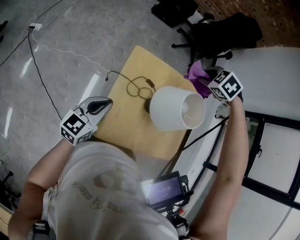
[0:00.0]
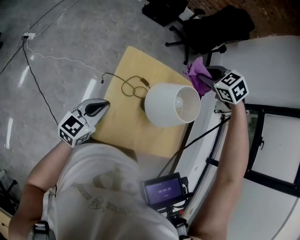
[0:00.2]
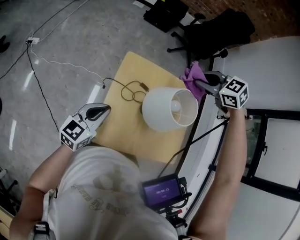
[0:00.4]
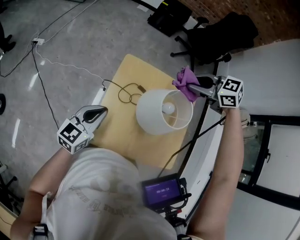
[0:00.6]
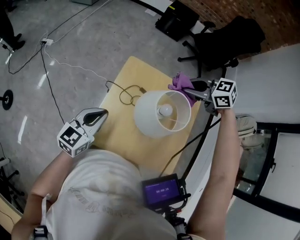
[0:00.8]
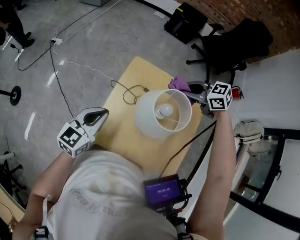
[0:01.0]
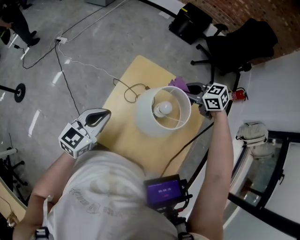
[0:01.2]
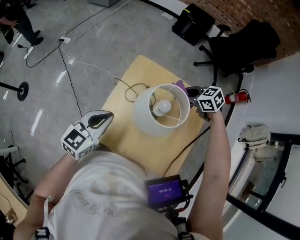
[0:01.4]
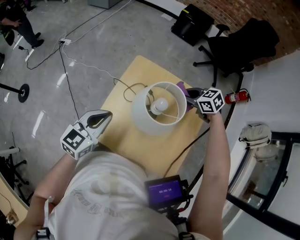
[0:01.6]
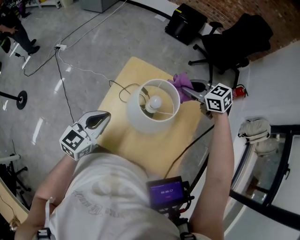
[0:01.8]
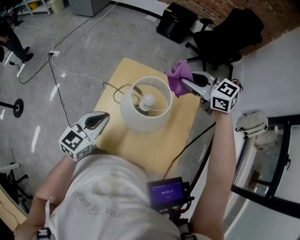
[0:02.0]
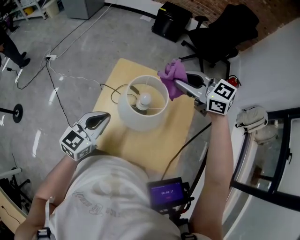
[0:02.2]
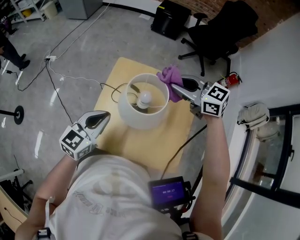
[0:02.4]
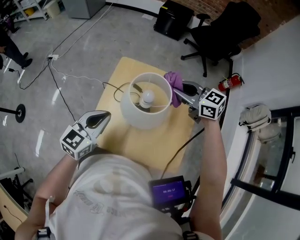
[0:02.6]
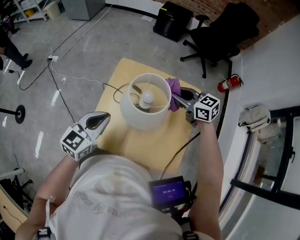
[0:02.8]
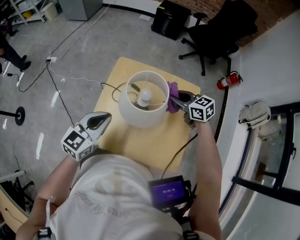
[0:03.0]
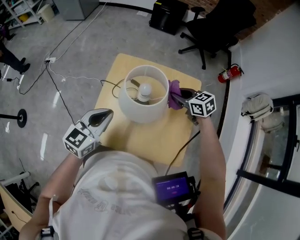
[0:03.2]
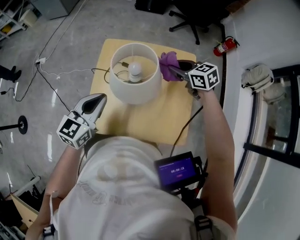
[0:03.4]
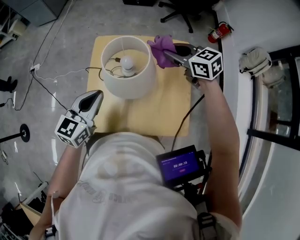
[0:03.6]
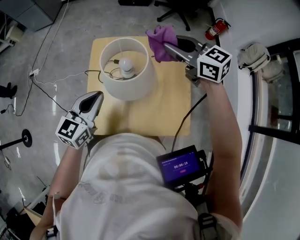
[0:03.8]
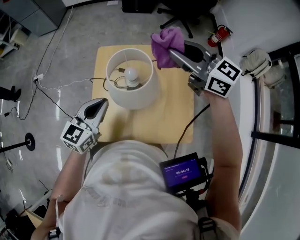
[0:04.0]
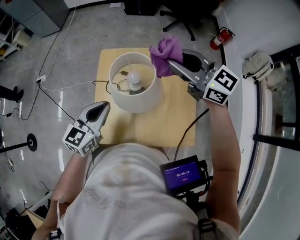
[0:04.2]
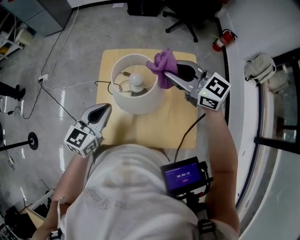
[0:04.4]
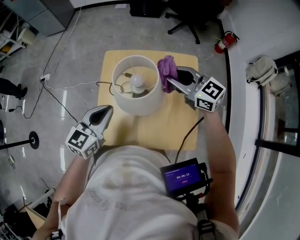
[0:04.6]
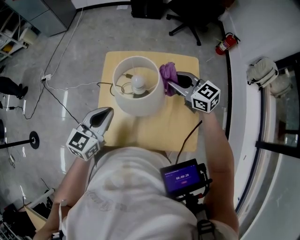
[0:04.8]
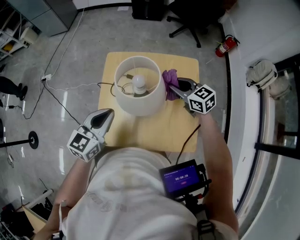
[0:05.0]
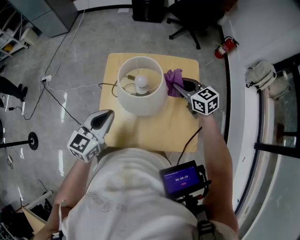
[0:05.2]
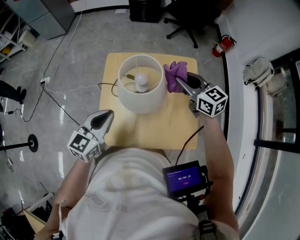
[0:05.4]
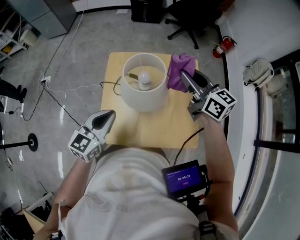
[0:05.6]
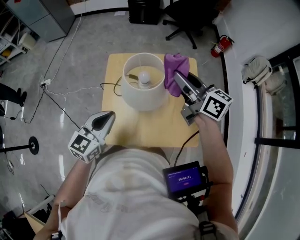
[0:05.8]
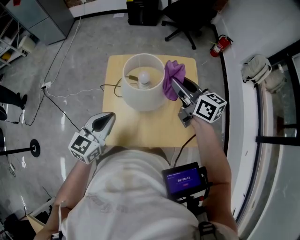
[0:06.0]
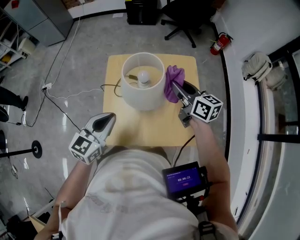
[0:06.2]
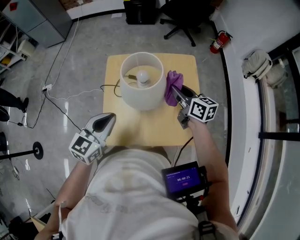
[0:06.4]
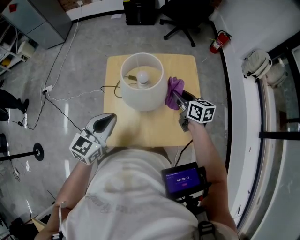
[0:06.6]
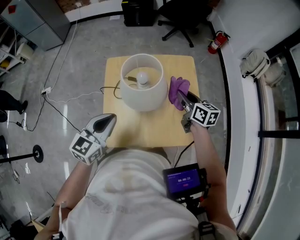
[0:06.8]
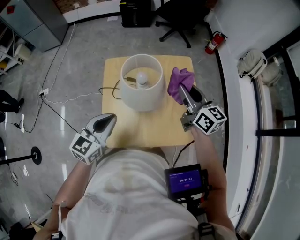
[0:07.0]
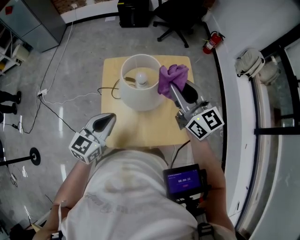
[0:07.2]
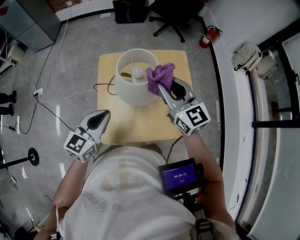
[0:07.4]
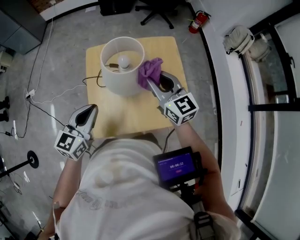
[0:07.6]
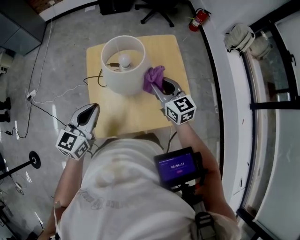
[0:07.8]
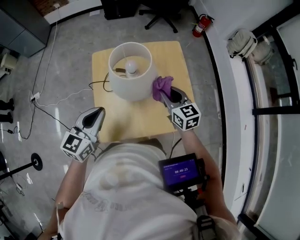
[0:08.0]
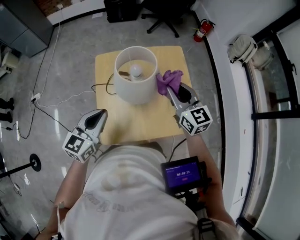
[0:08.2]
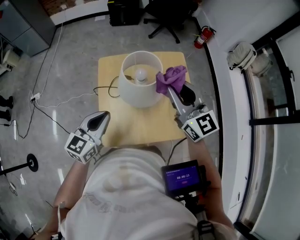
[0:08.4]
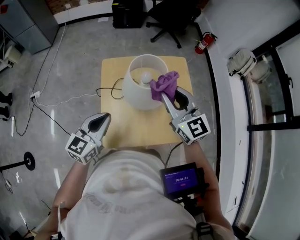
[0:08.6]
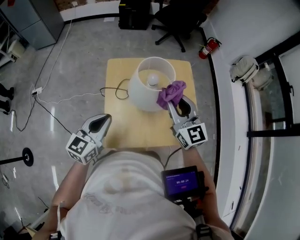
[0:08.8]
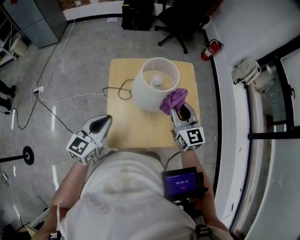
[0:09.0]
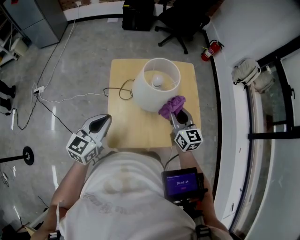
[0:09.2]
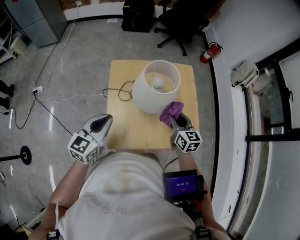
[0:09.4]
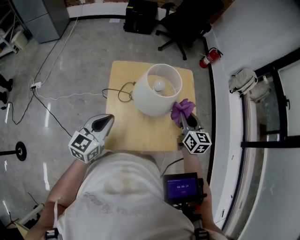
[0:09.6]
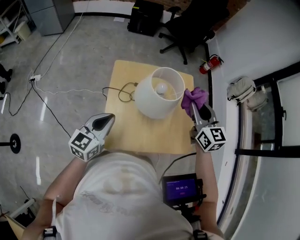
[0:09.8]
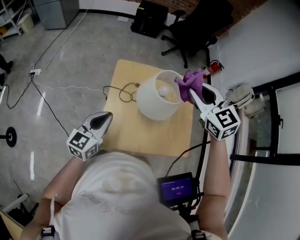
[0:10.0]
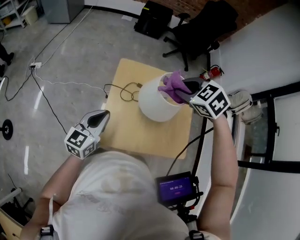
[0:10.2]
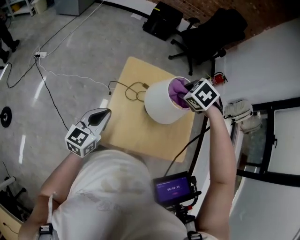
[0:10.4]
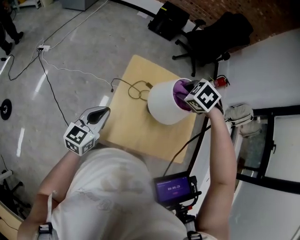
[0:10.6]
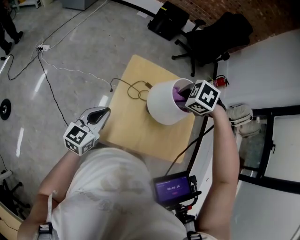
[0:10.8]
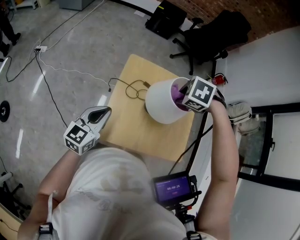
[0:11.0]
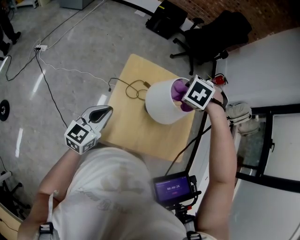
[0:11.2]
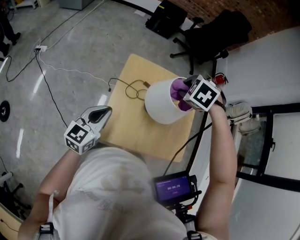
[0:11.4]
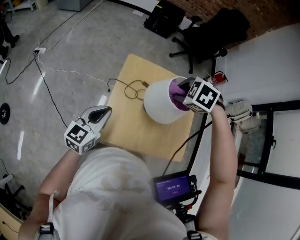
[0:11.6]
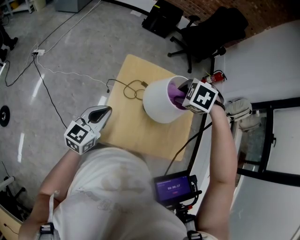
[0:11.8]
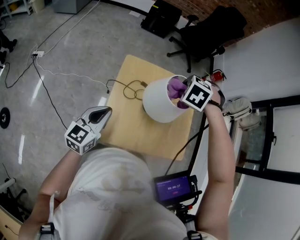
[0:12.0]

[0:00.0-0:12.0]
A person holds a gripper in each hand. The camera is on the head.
0.0 to 1.6 s: The right gripper shifts some 15 cm downward, and tilts its fingers approximately 30 degrees upward, while the left gripper moves approximately 15 cm.
1.6 to 3.0 s: The right gripper is displaced backward by approximately 5 cm, reaches roughly 20 cm upward, then returns, and rotates approximately 20 degrees.
3.0 to 4.4 s: The right gripper heads upward, covering about 15 cm, and turns by roughly 30 degrees.
4.4 to 6.0 s: The left gripper moves roughly 5 cm. Meanwhile the right gripper goes up and down, roughly 20 cm each way, reversing 2 times, and rotates about 40 degrees.
6.0 to 7.6 s: The right gripper goes up and down, roughly 20 cm each way, reversing 2 times, and swivels about 30 degrees.
7.6 to 9.0 s: The right gripper swings up and down, roughly 20 cm each way, with 2 reversals; the left gripper moves to the left, some 5 cm.
9.0 to 10.4 s: The right gripper moves up and down over roughly 25 cm, changing direction 2 times, and angles its fingers downward, by some 70 degrees; the left gripper shifts by some 5 cm.

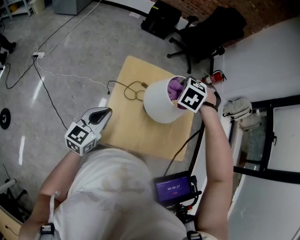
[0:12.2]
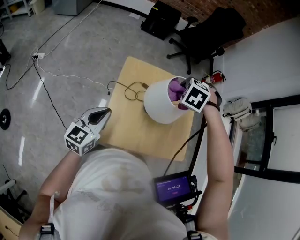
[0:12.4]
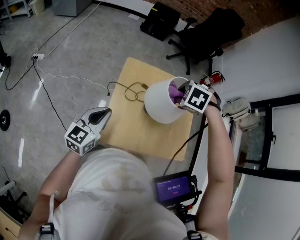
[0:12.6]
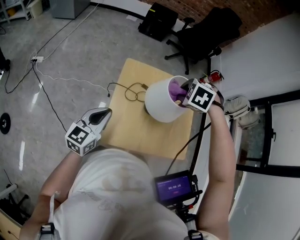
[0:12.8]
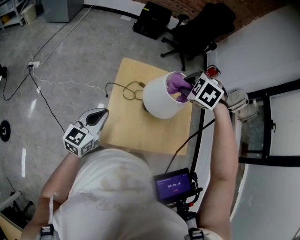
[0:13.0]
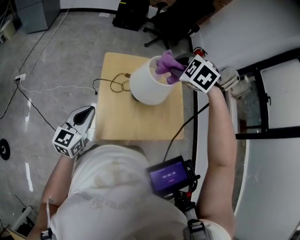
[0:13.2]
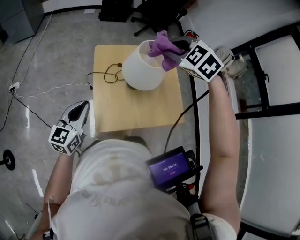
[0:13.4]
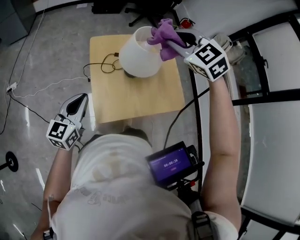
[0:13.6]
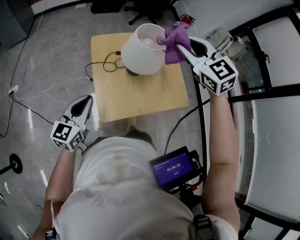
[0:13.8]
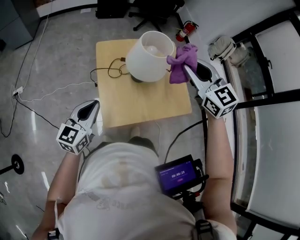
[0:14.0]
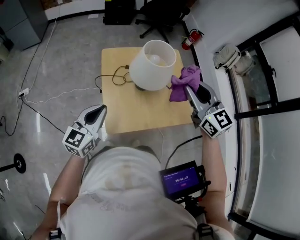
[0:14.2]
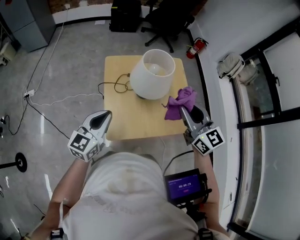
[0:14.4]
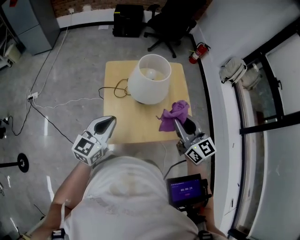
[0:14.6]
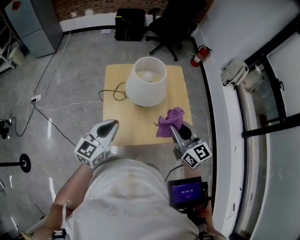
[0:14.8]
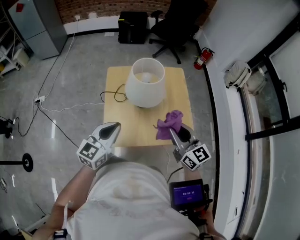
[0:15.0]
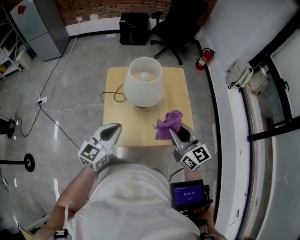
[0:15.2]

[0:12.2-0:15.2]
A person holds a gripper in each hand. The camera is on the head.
12.2 to 13.8 s: The right gripper heads upward, covering about 15 cm, and tilts its fingers approximately 50 degrees upward, while the left gripper changes place by some 5 cm.
13.8 to 15.2 s: The left gripper travels to the right by about 15 cm. Meanwhile the right gripper moves backward, downward and to the right, some 20 cm, and rotates roughly 40 degrees.

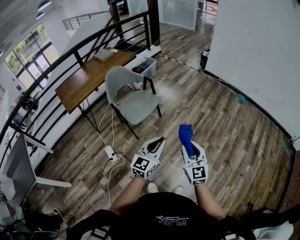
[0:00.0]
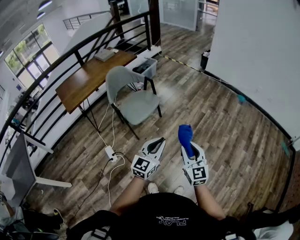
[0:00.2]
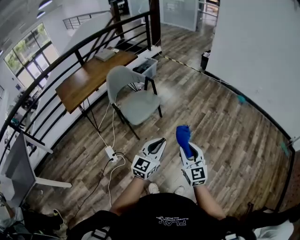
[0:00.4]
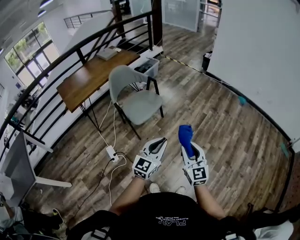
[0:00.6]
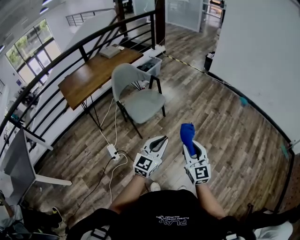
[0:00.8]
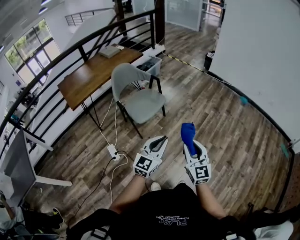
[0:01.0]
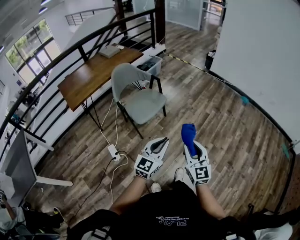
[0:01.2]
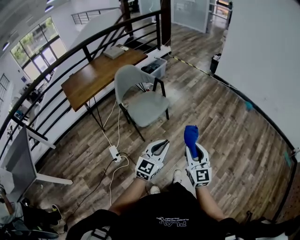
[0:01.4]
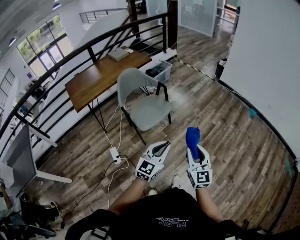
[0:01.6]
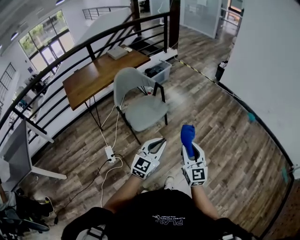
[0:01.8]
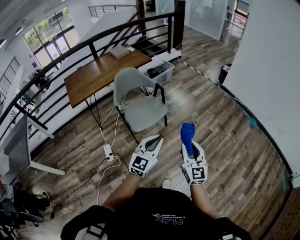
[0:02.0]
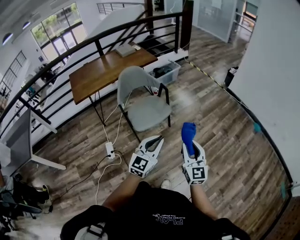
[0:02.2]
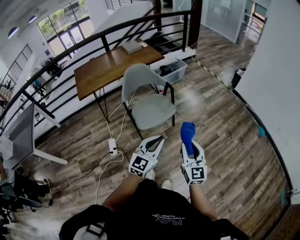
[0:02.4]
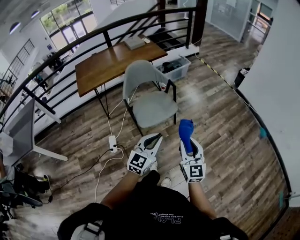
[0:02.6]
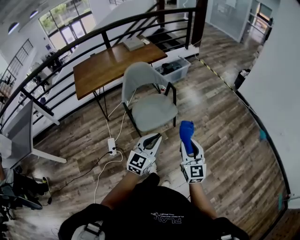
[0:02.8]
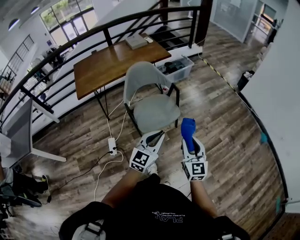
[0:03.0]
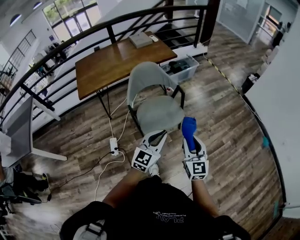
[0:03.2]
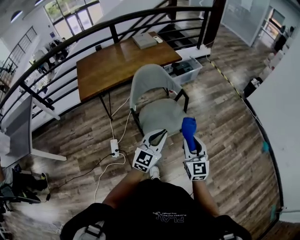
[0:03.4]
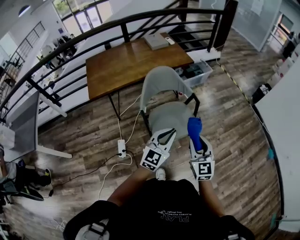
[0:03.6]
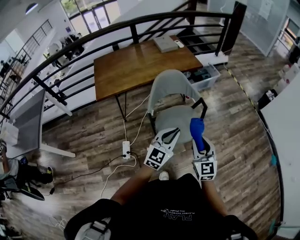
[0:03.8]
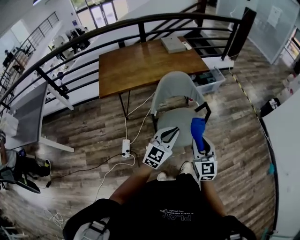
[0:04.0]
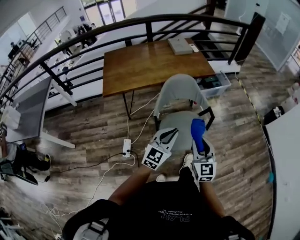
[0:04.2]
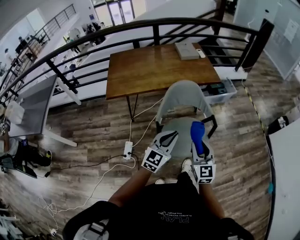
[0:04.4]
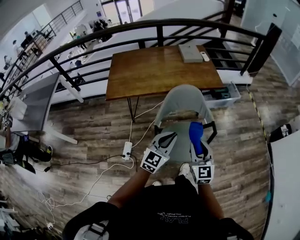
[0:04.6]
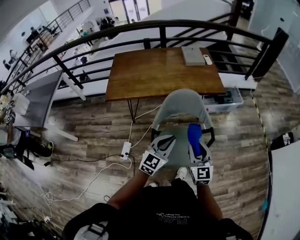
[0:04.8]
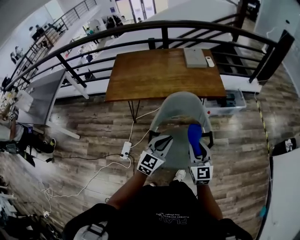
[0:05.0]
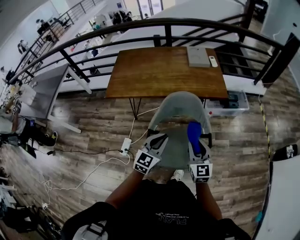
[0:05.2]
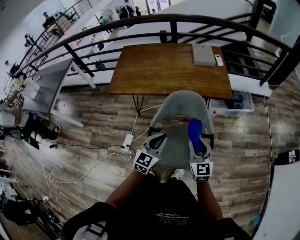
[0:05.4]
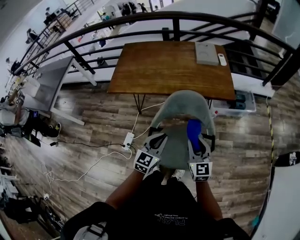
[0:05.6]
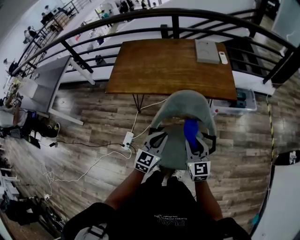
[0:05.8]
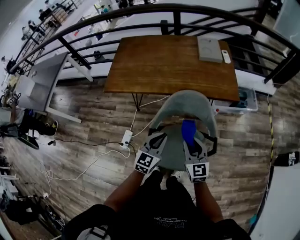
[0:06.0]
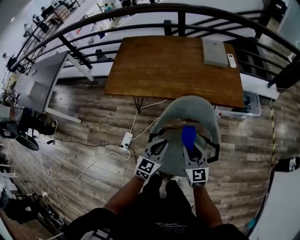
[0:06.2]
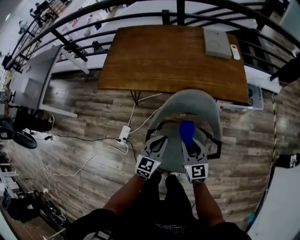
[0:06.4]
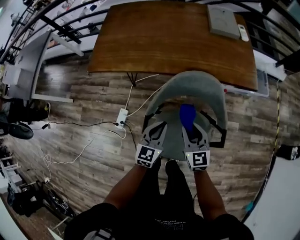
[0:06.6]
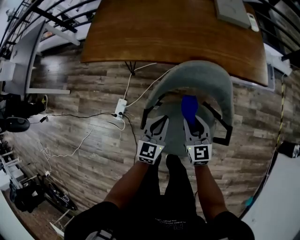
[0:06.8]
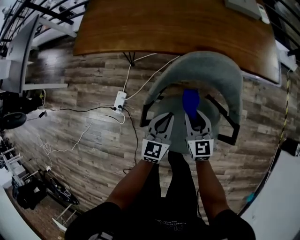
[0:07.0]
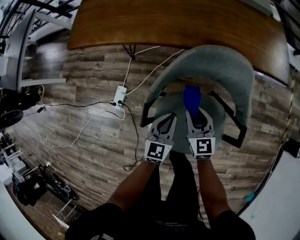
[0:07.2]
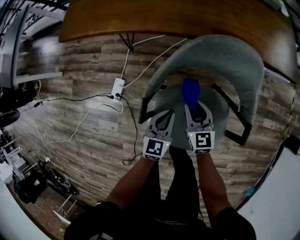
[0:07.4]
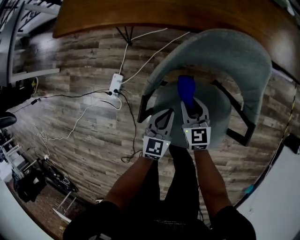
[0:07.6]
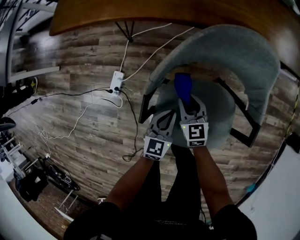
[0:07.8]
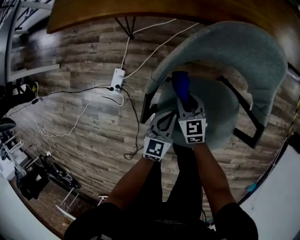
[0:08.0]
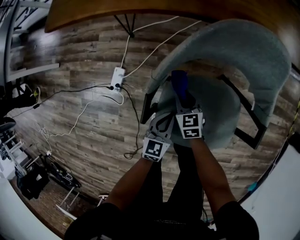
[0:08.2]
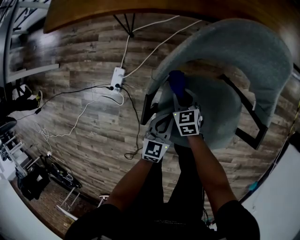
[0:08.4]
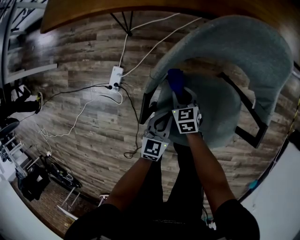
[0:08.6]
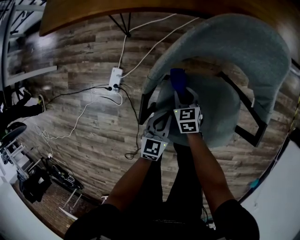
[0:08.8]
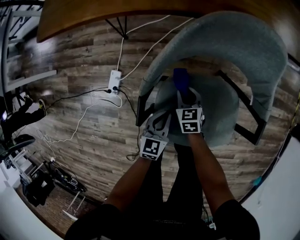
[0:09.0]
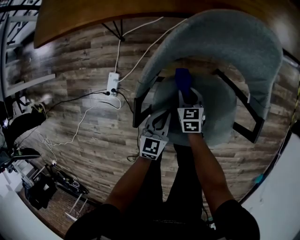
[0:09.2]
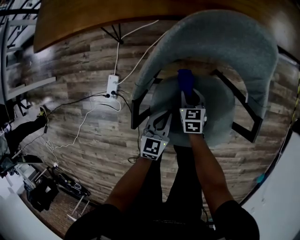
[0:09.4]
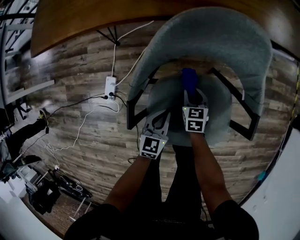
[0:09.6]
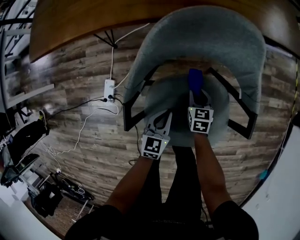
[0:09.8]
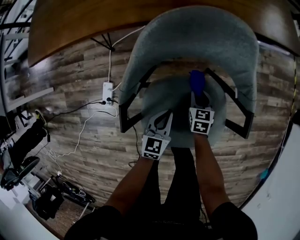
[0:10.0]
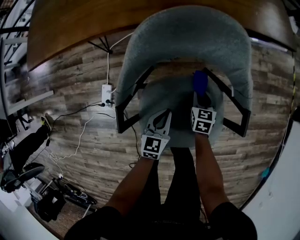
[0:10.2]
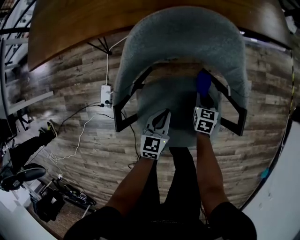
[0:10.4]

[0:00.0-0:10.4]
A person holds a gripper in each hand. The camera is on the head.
0.0 to 1.4 s: Both grippers move to the left, about 5 cm.
1.4 to 3.0 s: The grippers both shift forward by about 25 cm.
3.0 to 4.4 s: Both grippers travel together forward and to the left, some 30 cm.
4.4 to 6.0 s: The left gripper is displaced forward and downward by roughly 20 cm, and changes its angle by approximately 30 degrees. Meanwhile the right gripper moves forward, approximately 20 cm, and turns by approximately 20 degrees.
6.0 to 7.4 s: The two grippers go about 30 cm downward.
7.4 to 9.0 s: The right gripper moves downward, some 15 cm, and swivels roughly 20 degrees. Meanwhile the left gripper goes roughly 10 cm downward.
9.0 to 10.4 s: The right gripper goes approximately 20 cm to the right, and swivels about 30 degrees, while the left gripper heads to the right, covering roughly 10 cm.
